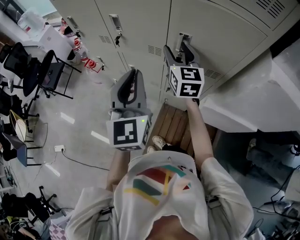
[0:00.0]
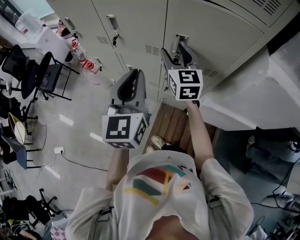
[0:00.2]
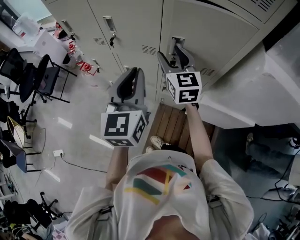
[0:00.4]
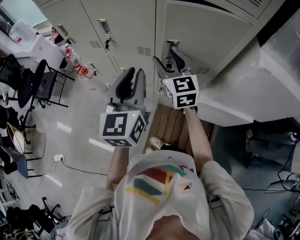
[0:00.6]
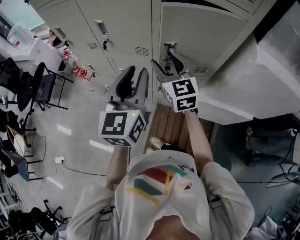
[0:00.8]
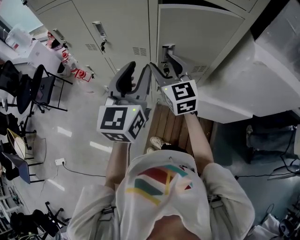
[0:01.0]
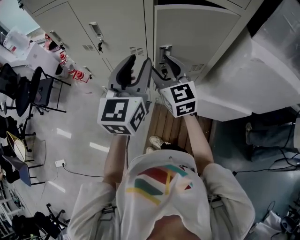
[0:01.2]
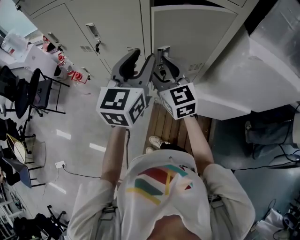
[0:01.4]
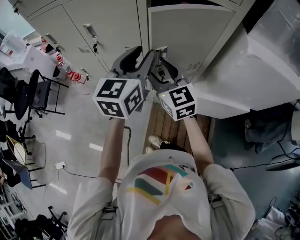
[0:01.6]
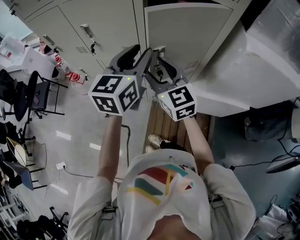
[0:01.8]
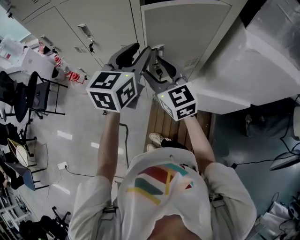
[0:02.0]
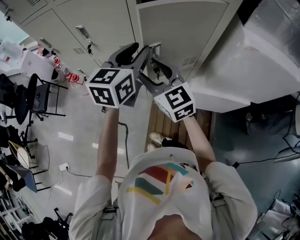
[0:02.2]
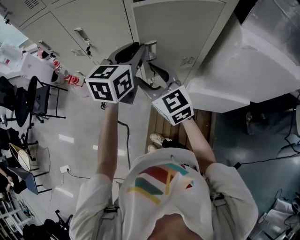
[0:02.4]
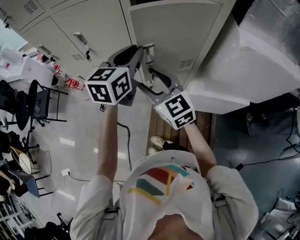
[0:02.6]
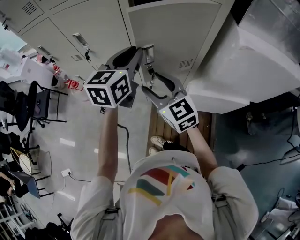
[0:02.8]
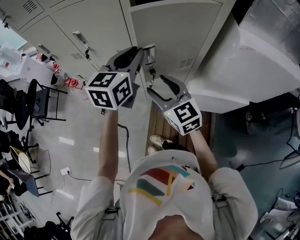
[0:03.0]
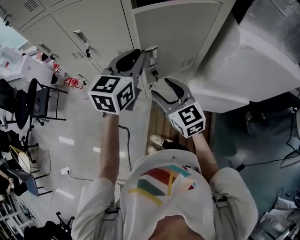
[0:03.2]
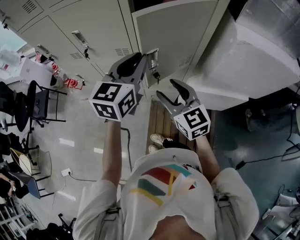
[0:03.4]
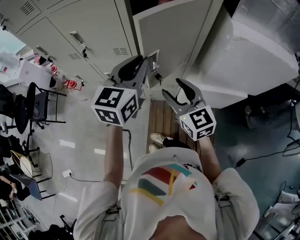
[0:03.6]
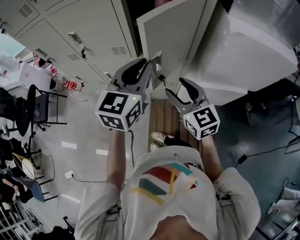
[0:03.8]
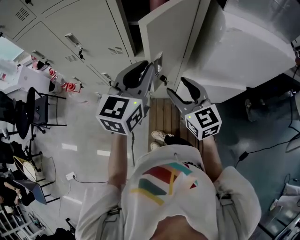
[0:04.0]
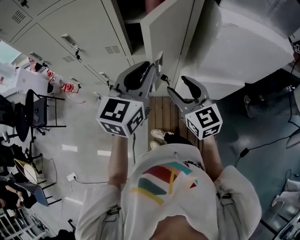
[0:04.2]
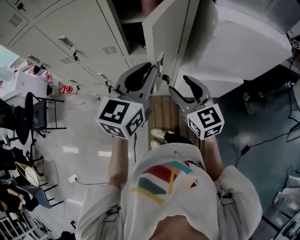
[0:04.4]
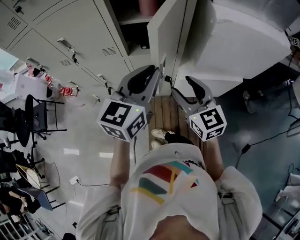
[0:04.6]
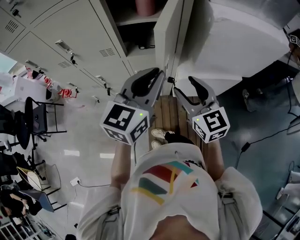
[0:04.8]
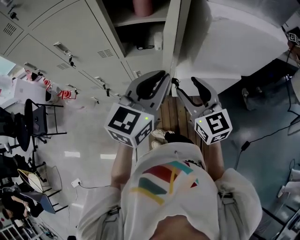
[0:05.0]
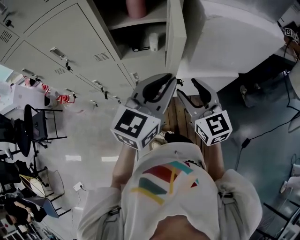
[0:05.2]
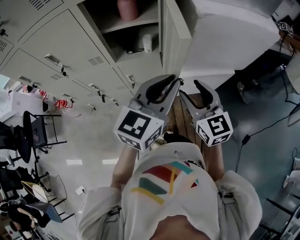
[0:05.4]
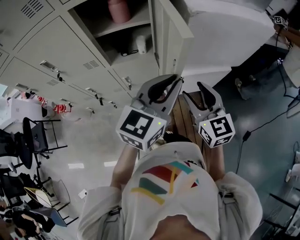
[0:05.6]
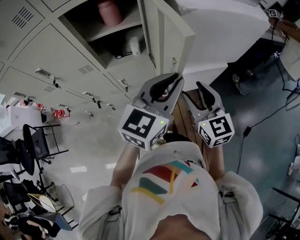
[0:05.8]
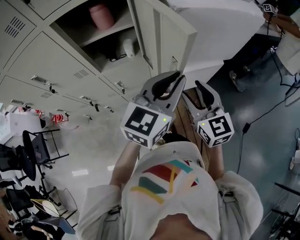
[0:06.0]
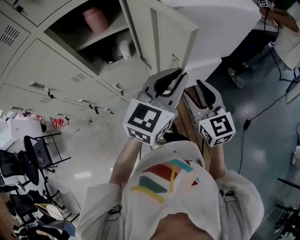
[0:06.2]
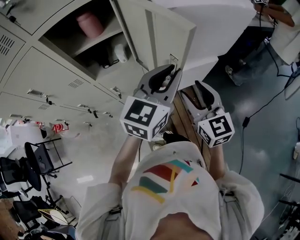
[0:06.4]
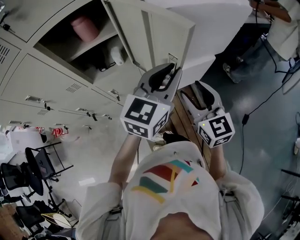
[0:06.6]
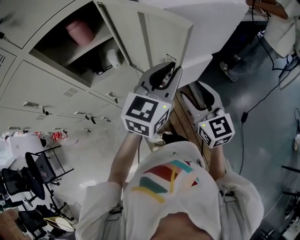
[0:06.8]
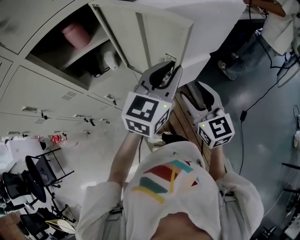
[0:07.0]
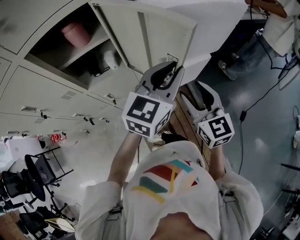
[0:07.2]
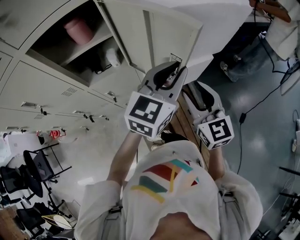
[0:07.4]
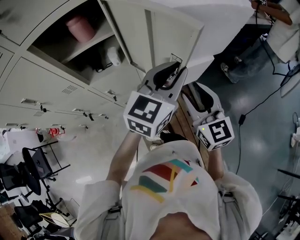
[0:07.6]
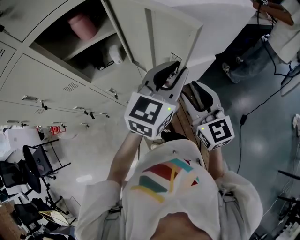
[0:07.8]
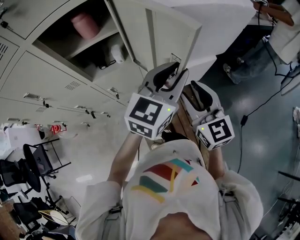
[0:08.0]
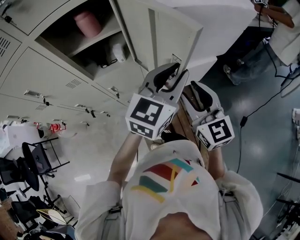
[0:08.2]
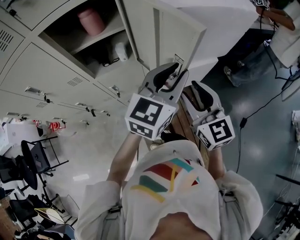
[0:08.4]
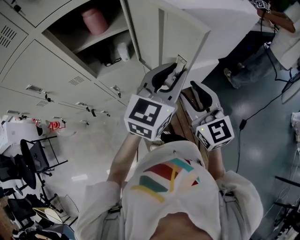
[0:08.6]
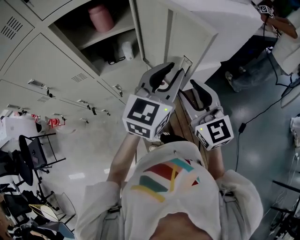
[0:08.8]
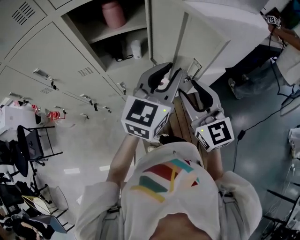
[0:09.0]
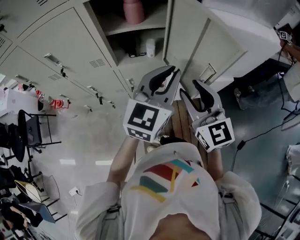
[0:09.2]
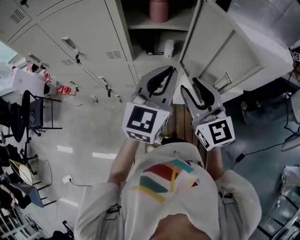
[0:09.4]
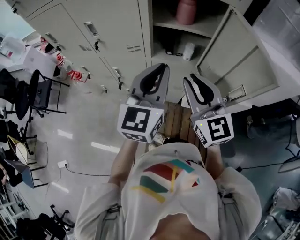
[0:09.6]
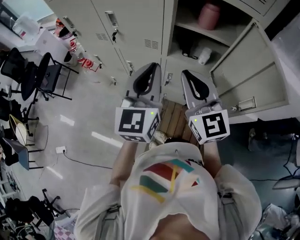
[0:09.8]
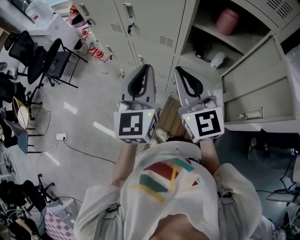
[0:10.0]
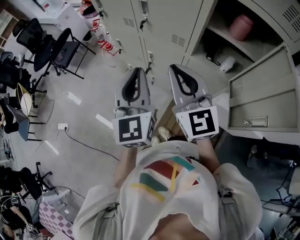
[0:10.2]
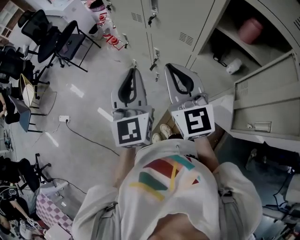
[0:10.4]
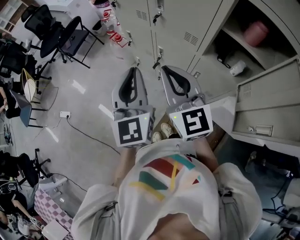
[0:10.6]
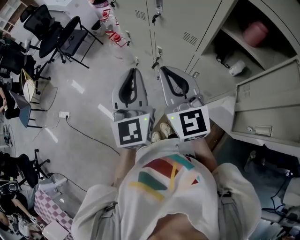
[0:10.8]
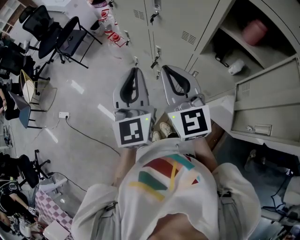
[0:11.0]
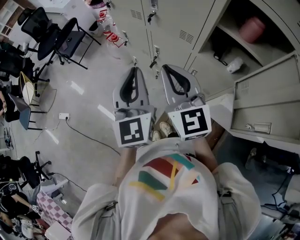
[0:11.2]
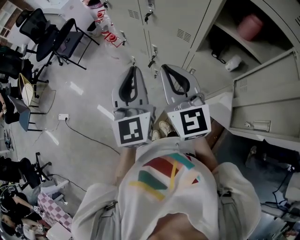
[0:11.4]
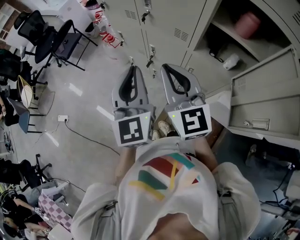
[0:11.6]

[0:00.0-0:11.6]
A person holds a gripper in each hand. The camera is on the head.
0:00.0 to 0:01.4: The left gripper goes approximately 10 cm to the right, changes its angle by roughly 30 degrees, and opens up. The right gripper heads backward, covering roughly 10 cm.
0:01.4 to 0:02.8: The left gripper moves approximately 5 cm. The right gripper shifts about 5 cm backward.
0:02.8 to 0:04.4: The right gripper travels to the right and backward by approximately 15 cm; the left gripper shifts about 15 cm backward and to the right.
0:04.4 to 0:05.8: Both grippers move to the right, about 15 cm. The left gripper swivels roughly 20 degrees.
0:05.8 to 0:07.2: The right gripper heads to the right, covering roughly 5 cm. Meanwhile the left gripper goes approximately 10 cm forward and to the right.
0:07.2 to 0:08.8: Both grippers move to the left, some 5 cm.
0:08.8 to 0:10.2: The left gripper changes place by approximately 40 cm, and swivels roughly 80 degrees. Meanwhile the right gripper changes place by about 35 cm, swivels some 40 degrees, and closes.
0:10.2 to 0:11.6: The grippers make only small movements.

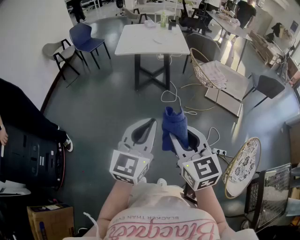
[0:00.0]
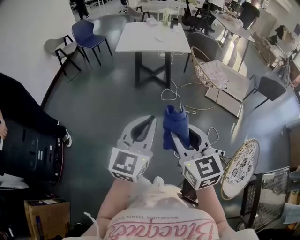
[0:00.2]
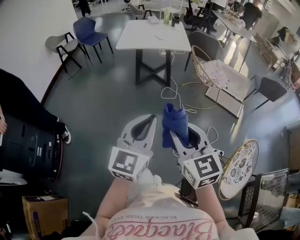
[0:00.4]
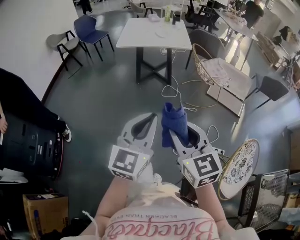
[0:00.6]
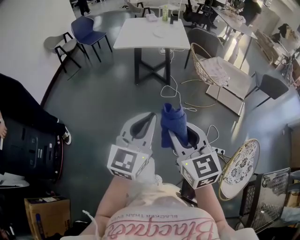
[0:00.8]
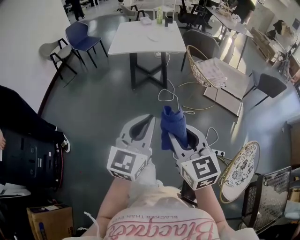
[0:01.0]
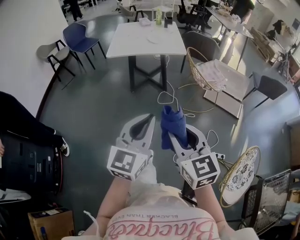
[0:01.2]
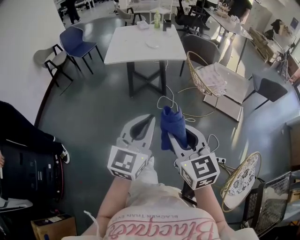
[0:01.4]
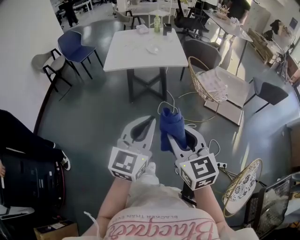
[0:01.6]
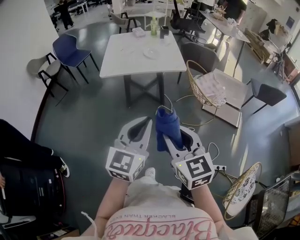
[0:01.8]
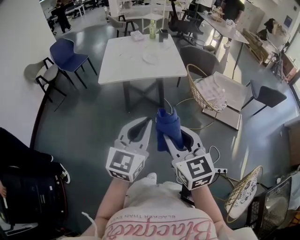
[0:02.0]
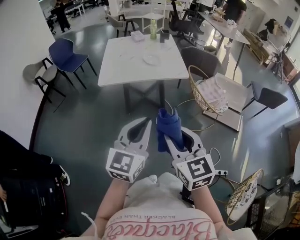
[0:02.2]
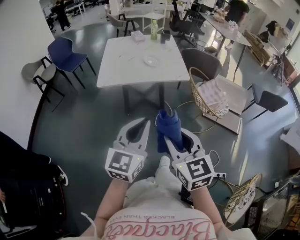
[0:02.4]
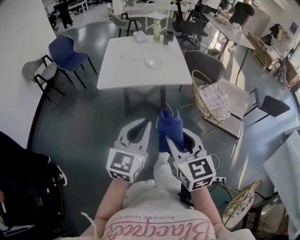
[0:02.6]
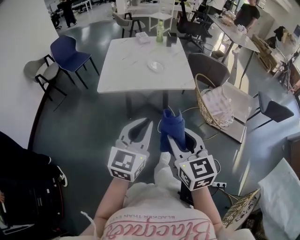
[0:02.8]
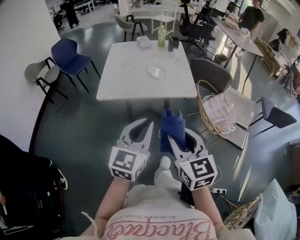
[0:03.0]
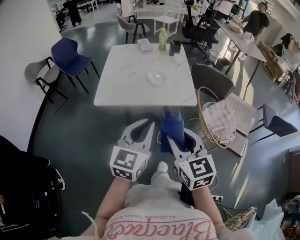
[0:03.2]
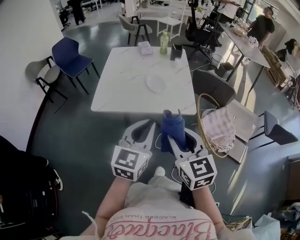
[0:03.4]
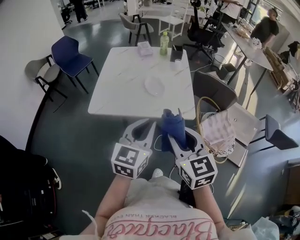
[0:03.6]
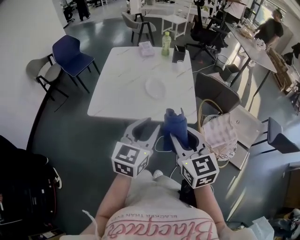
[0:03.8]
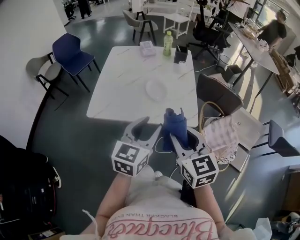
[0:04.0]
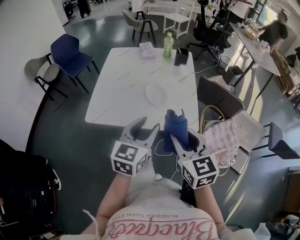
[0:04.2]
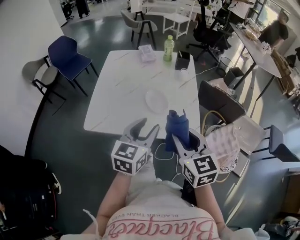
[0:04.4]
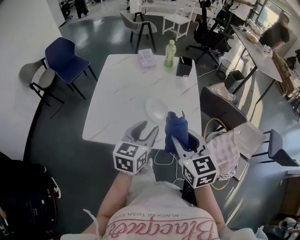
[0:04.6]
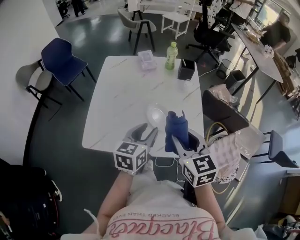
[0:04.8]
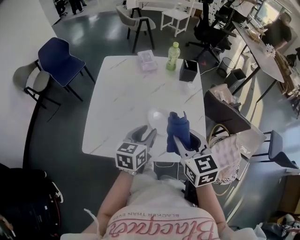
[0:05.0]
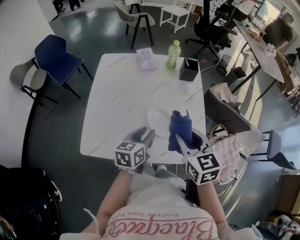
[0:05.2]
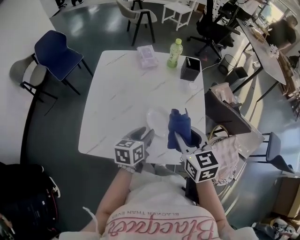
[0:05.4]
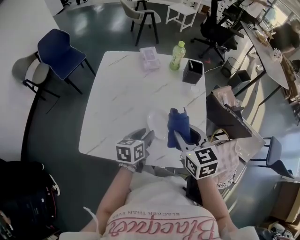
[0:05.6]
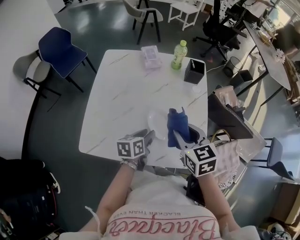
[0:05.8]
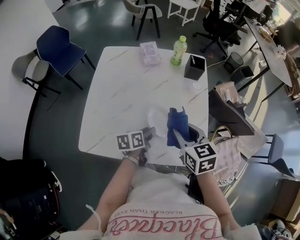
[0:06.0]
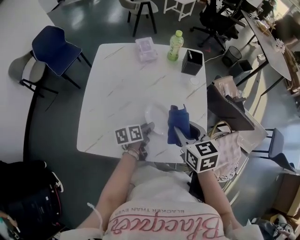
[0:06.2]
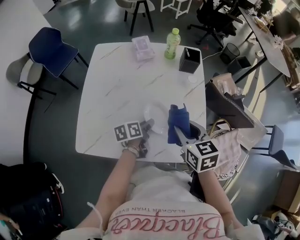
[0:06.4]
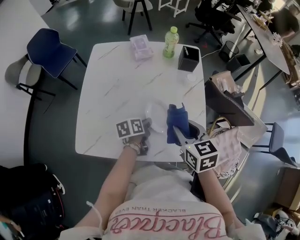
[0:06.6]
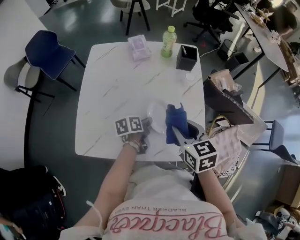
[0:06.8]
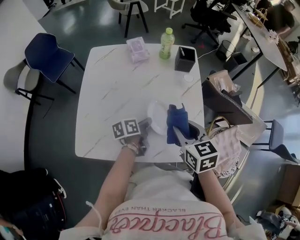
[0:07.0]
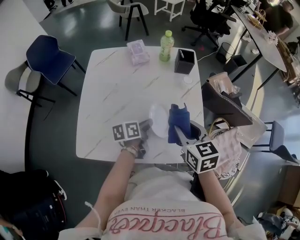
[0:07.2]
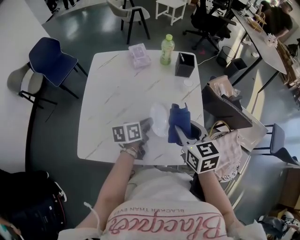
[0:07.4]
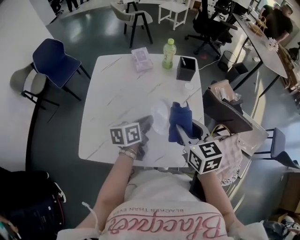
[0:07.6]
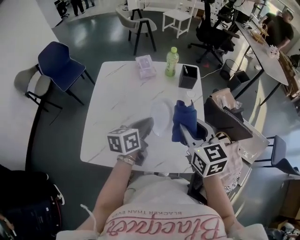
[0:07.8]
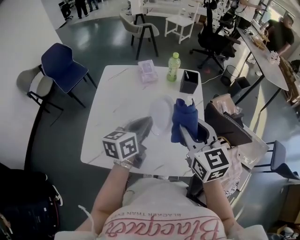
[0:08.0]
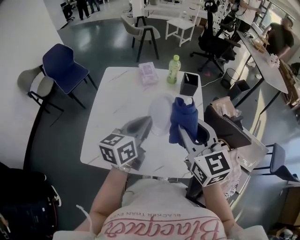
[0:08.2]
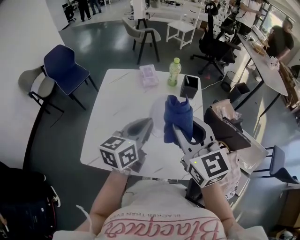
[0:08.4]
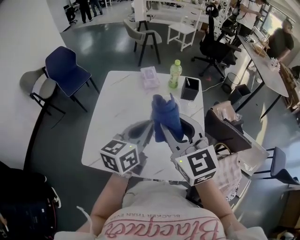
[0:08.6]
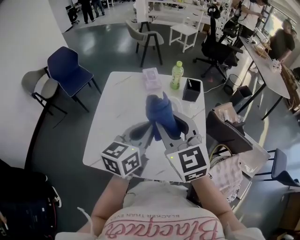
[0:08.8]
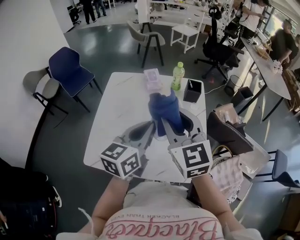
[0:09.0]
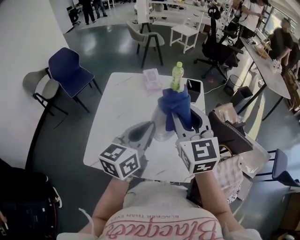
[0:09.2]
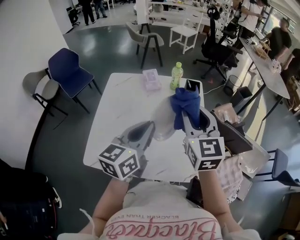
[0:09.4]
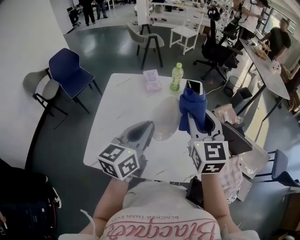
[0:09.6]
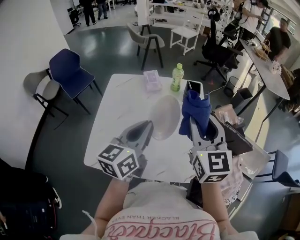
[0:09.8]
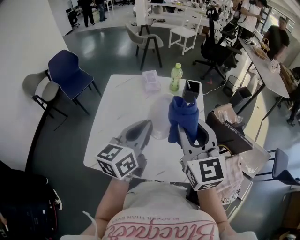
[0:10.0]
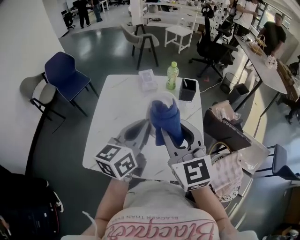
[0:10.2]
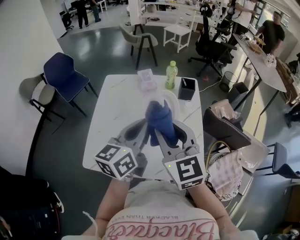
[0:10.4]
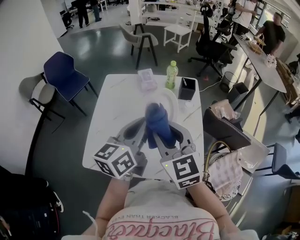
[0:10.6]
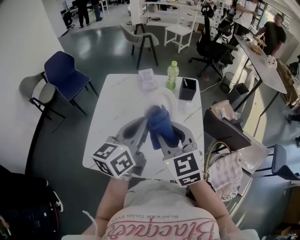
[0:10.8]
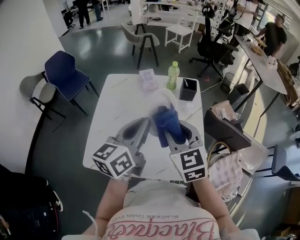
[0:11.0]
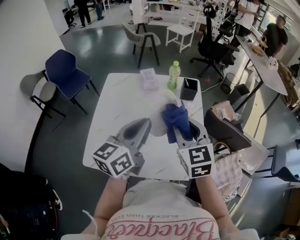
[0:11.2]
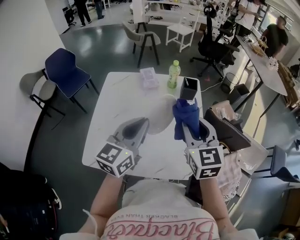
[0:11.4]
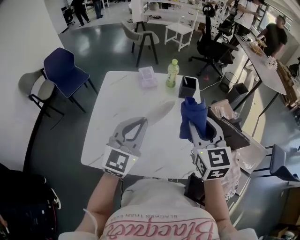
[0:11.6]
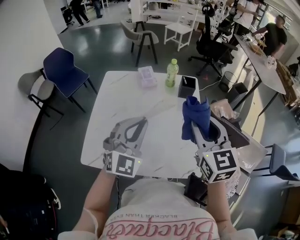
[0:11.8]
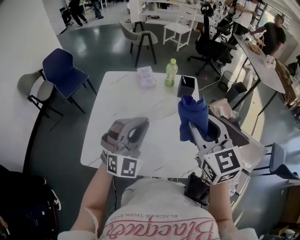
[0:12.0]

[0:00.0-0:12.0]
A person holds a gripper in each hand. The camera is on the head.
0:00.0 to 0:01.6: Both grippers travel together forward, approximately 25 cm.
0:01.6 to 0:03.0: Both grippers move forward, roughly 30 cm.
0:03.0 to 0:04.4: Both grippers travel together forward, approximately 30 cm. The left gripper opens up.
0:04.4 to 0:06.0: The right gripper moves forward and downward, roughly 25 cm, while the left gripper travels downward and forward by approximately 30 cm, and twists some 40 degrees counterclockwise, seen from behind.
0:06.0 to 0:07.6: The left gripper moves upward and forward, approximately 10 cm, and closes its fingers. Meanwhile the right gripper ends up some 5 cm from where it was.
0:07.6 to 0:09.0: The left gripper heads upward, covering some 20 cm, and changes its angle by roughly 30 degrees, while the right gripper moves upward and to the left, about 15 cm, and swivels about 30 degrees.
0:09.0 to 0:10.4: The right gripper moves some 10 cm to the right and comes back.
0:10.4 to 0:12.0: The right gripper moves to the right, some 10 cm, while the left gripper twists approximately 80 degrees clockwise, seen from behind.
